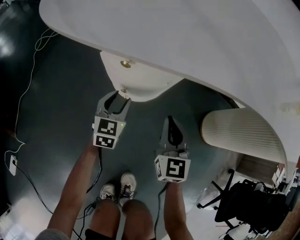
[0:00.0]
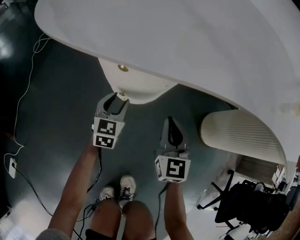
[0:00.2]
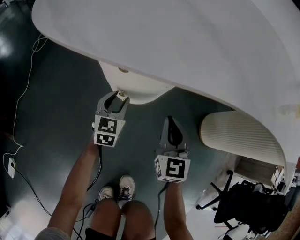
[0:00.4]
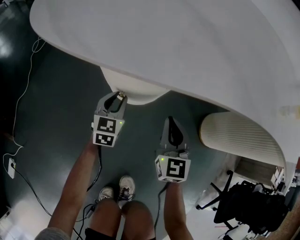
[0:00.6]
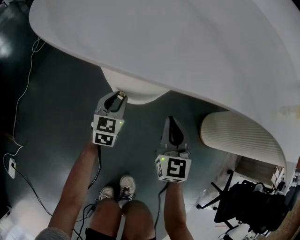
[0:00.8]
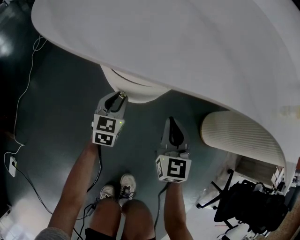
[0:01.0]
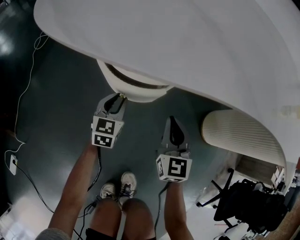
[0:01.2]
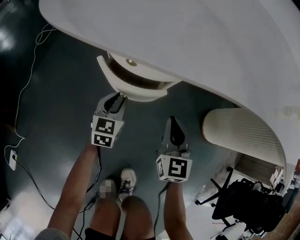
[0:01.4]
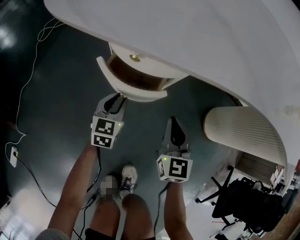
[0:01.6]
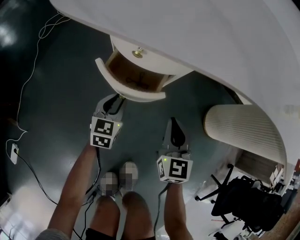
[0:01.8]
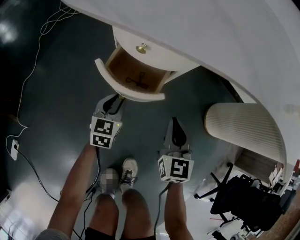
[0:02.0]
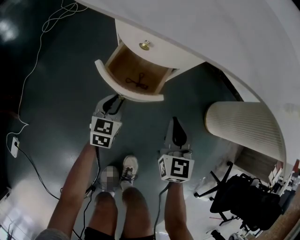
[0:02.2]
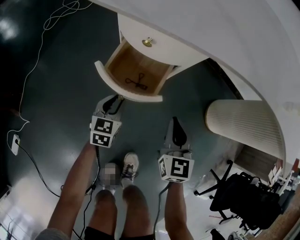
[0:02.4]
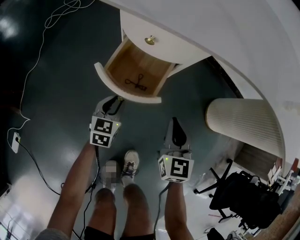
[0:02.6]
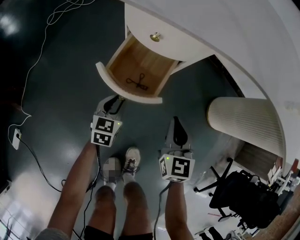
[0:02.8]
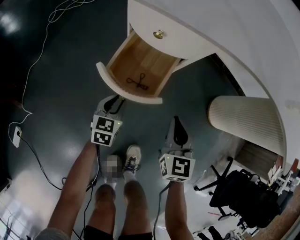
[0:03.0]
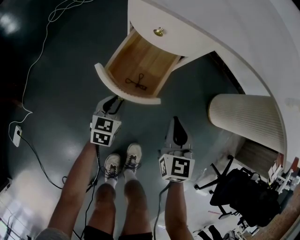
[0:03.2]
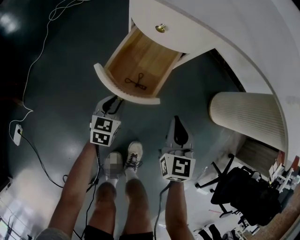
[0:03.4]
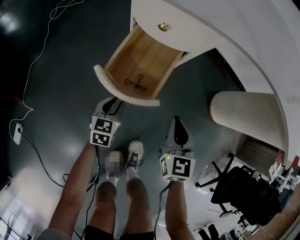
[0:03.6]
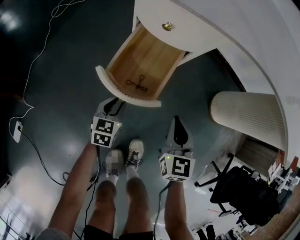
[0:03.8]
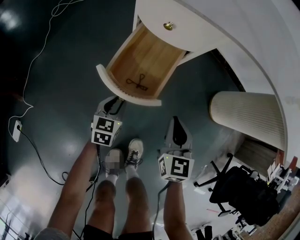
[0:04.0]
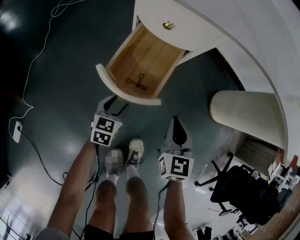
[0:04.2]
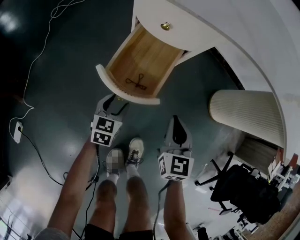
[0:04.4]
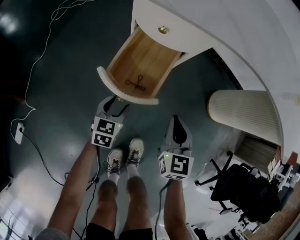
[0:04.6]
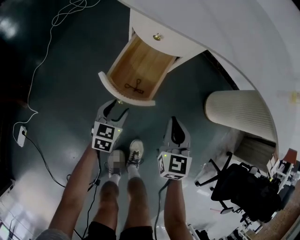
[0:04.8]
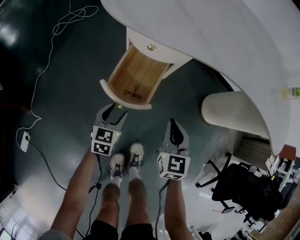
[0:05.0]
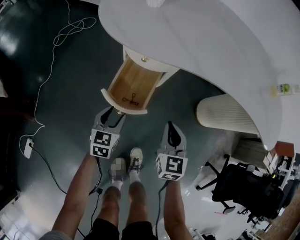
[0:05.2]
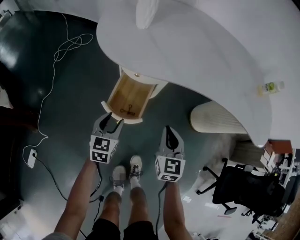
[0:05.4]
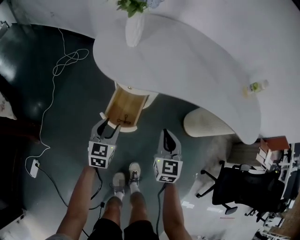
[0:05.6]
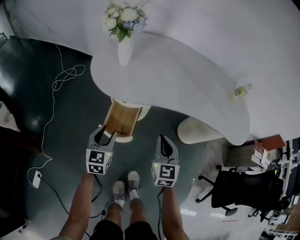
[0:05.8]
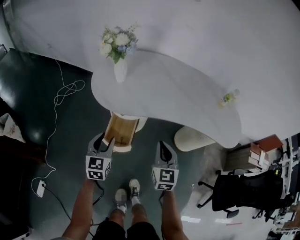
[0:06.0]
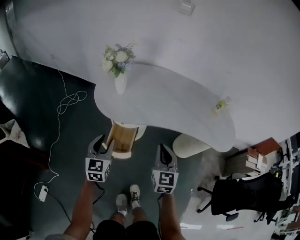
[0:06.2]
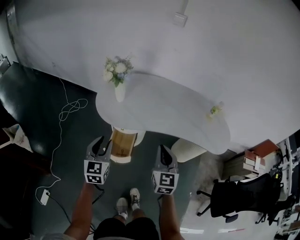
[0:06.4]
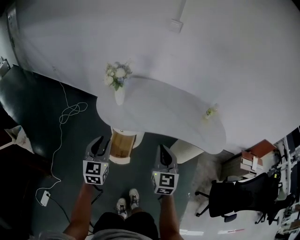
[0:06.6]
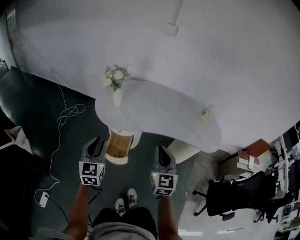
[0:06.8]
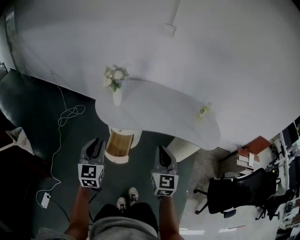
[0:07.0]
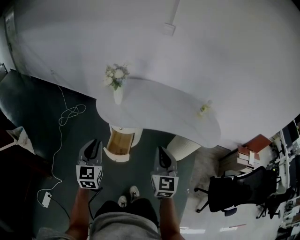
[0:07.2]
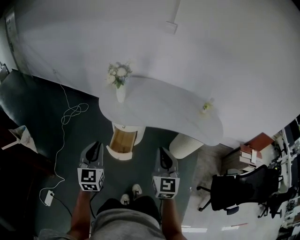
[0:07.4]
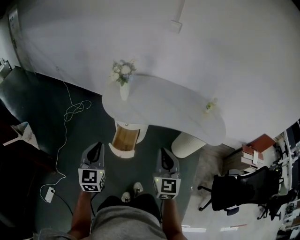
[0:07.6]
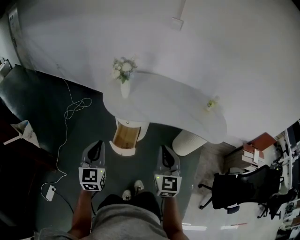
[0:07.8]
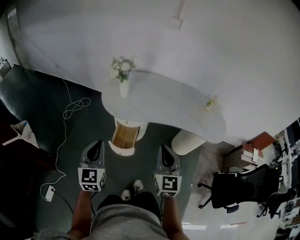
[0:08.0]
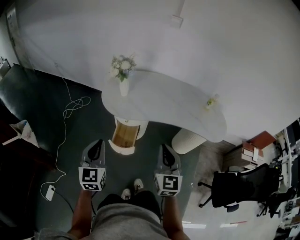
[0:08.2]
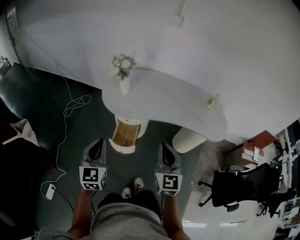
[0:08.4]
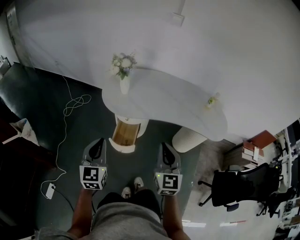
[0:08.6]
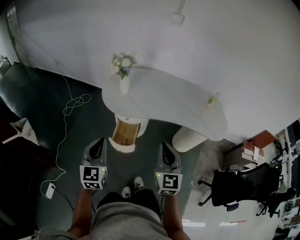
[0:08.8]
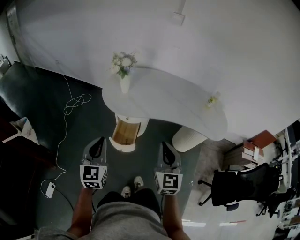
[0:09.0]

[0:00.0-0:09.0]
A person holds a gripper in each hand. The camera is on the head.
0:00.0 to 0:01.6: The grippers move only a little.
0:01.6 to 0:03.0: The grippers both shift backward by roughly 10 cm.
0:03.0 to 0:04.4: The left gripper opens up.
0:04.4 to 0:06.0: The two grippers go approximately 40 cm upward. The left gripper rotates roughly 20 degrees.
0:06.0 to 0:07.6: The two grippers go some 25 cm upward and backward. The left gripper closes up.
0:07.6 to 0:09.0: Both grippers stay about where they are.

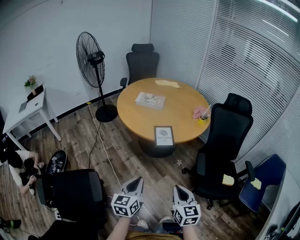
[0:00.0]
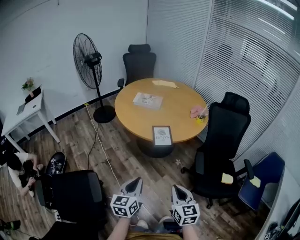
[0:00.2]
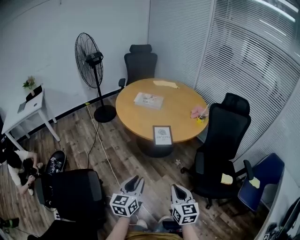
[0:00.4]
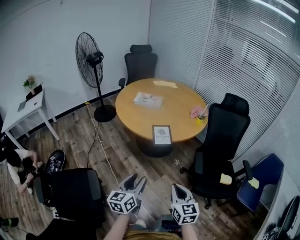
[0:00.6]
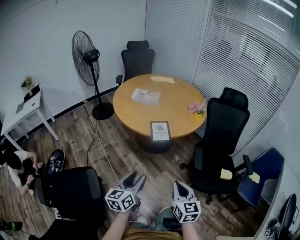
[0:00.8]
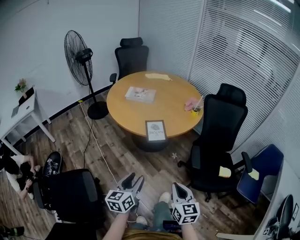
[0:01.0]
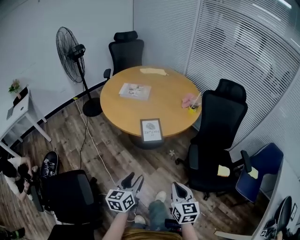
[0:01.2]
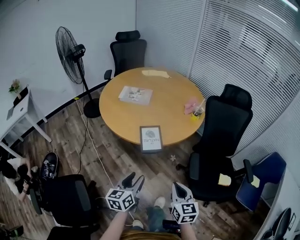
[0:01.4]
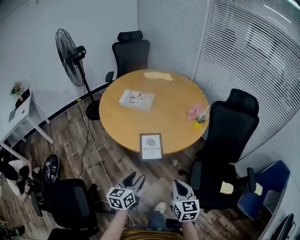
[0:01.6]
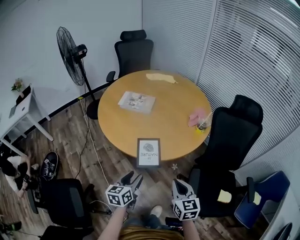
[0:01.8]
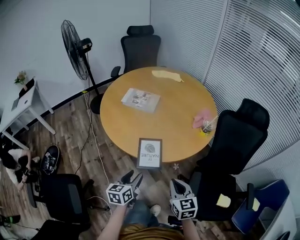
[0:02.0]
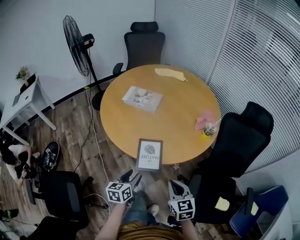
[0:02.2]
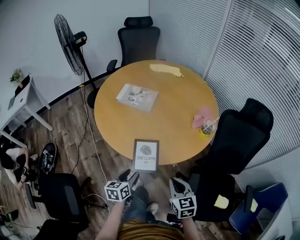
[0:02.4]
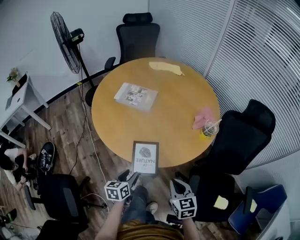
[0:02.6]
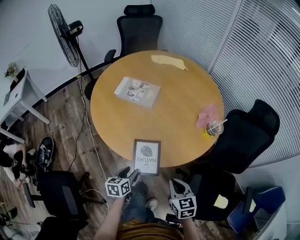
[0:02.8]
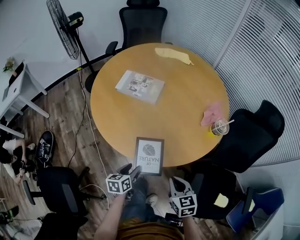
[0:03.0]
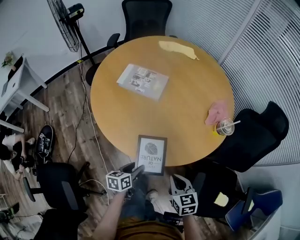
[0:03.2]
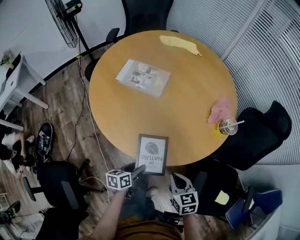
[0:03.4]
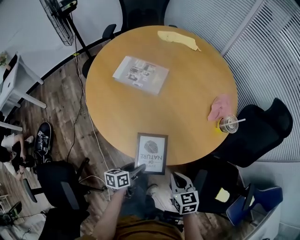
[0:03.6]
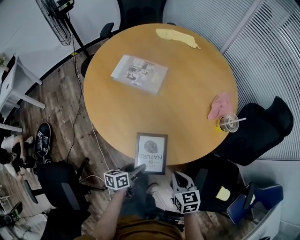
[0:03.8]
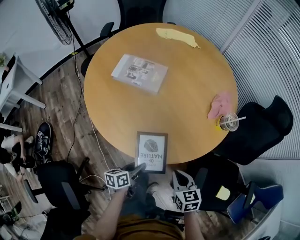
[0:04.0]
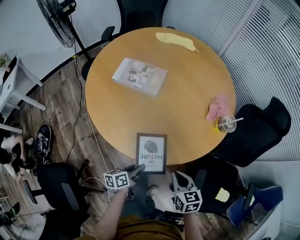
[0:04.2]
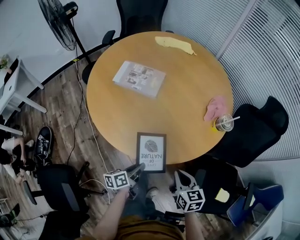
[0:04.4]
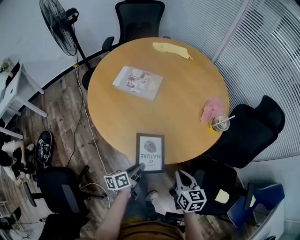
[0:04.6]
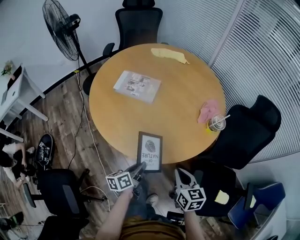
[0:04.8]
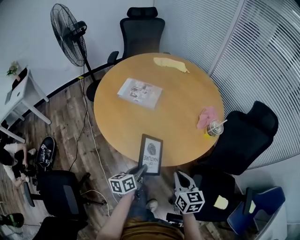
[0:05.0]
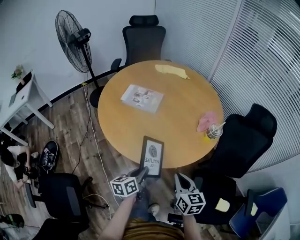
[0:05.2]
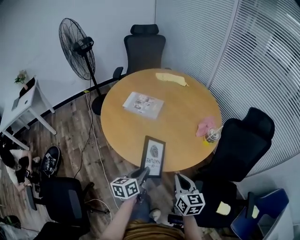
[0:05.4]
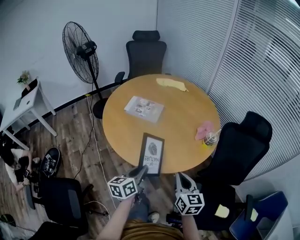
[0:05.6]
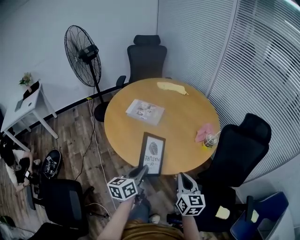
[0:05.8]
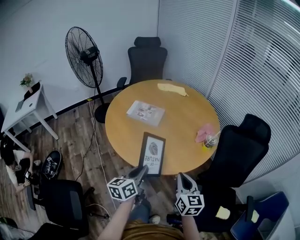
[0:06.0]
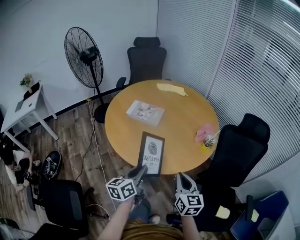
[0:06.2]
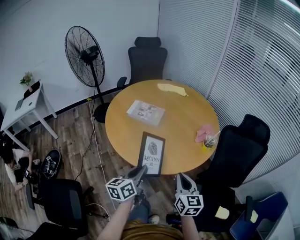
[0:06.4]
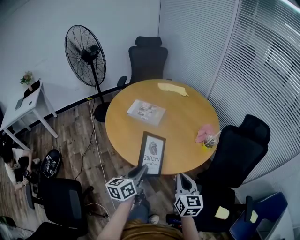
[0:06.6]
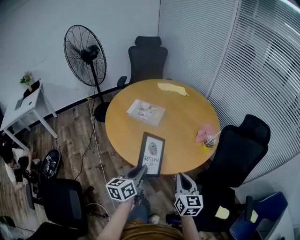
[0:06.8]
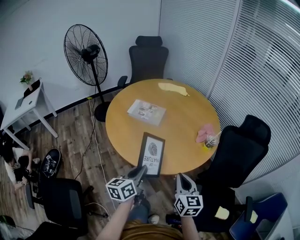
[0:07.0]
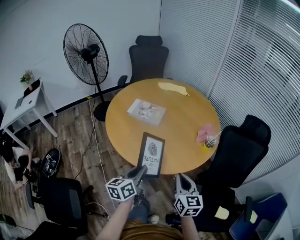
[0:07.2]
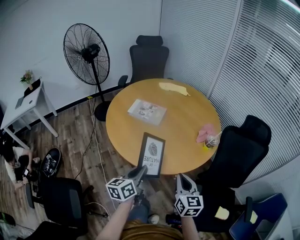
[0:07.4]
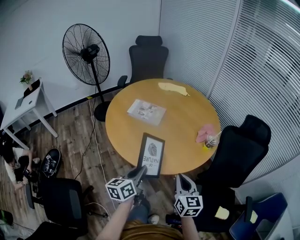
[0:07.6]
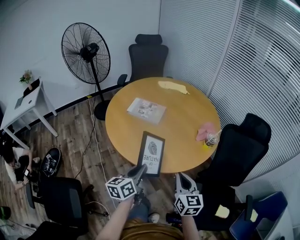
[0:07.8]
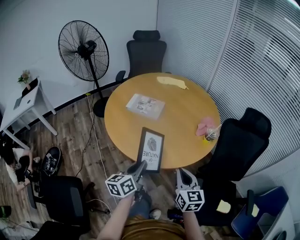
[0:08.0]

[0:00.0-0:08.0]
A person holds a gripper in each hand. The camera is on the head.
0:00.0 to 0:01.6: Both grippers move forward, about 20 cm. The left gripper opens up.
0:01.6 to 0:03.2: The right gripper moves forward and downward, about 20 cm, and swivels some 20 degrees, while the left gripper heads downward and forward, covering roughly 25 cm, and rotates approximately 30 degrees.
0:03.2 to 0:04.8: The left gripper is displaced upward by some 5 cm, and closes. The right gripper changes place by approximately 5 cm.
0:04.8 to 0:06.4: The left gripper is displaced upward by about 20 cm, and turns by about 20 degrees, while the right gripper is displaced upward by about 10 cm.
0:06.4 to 0:08.0: The two grippers keep their place.

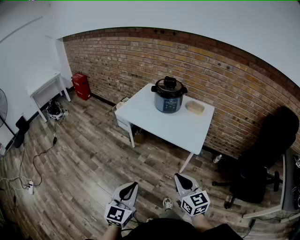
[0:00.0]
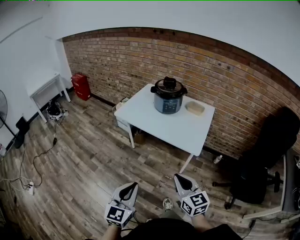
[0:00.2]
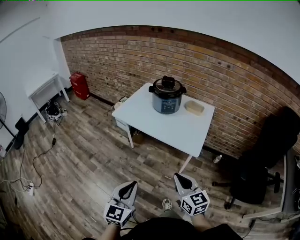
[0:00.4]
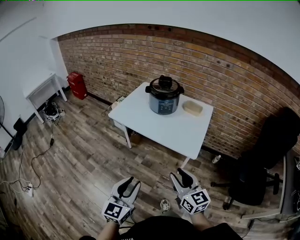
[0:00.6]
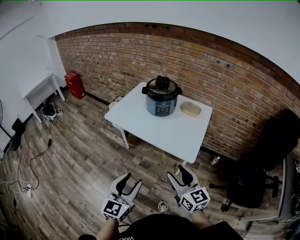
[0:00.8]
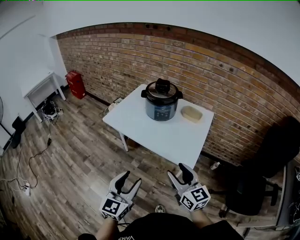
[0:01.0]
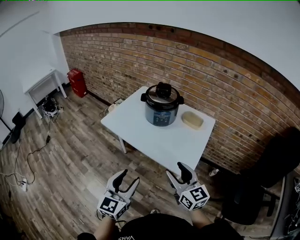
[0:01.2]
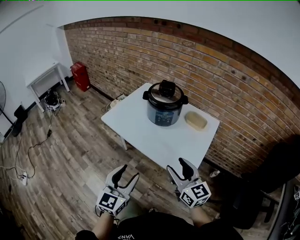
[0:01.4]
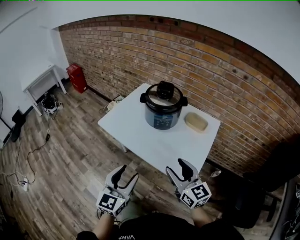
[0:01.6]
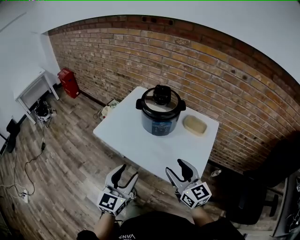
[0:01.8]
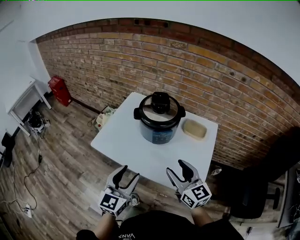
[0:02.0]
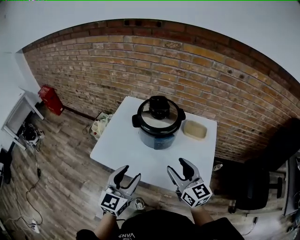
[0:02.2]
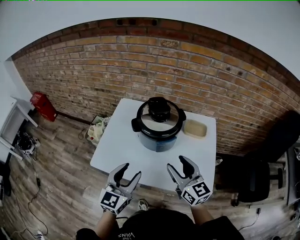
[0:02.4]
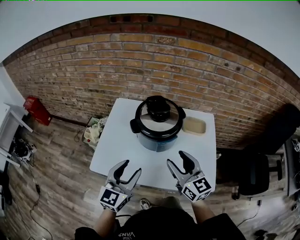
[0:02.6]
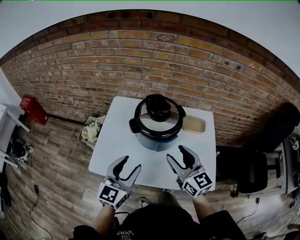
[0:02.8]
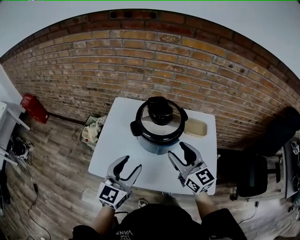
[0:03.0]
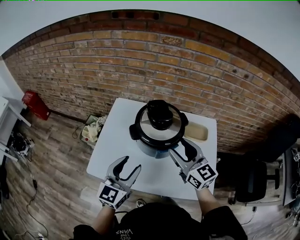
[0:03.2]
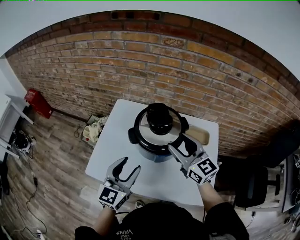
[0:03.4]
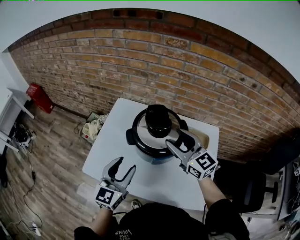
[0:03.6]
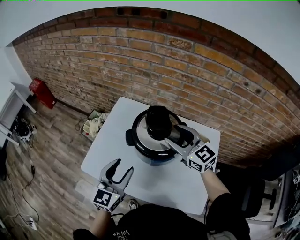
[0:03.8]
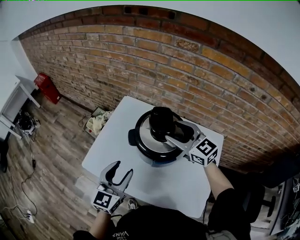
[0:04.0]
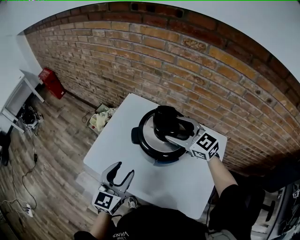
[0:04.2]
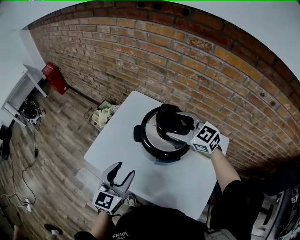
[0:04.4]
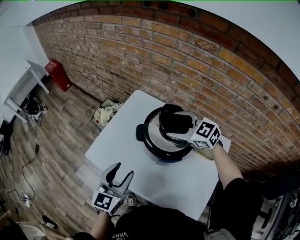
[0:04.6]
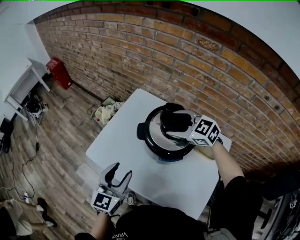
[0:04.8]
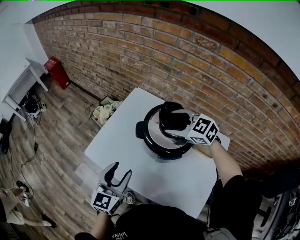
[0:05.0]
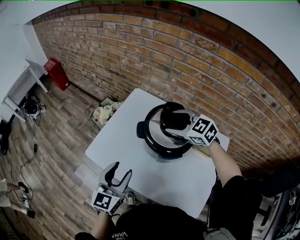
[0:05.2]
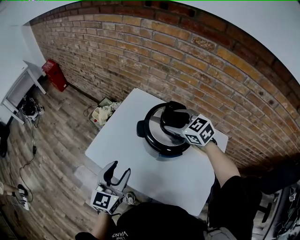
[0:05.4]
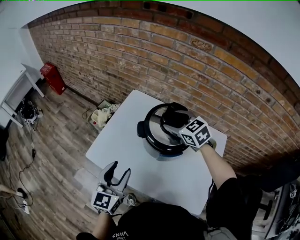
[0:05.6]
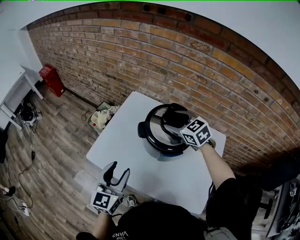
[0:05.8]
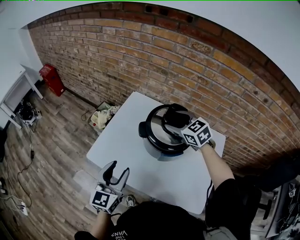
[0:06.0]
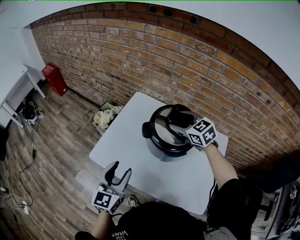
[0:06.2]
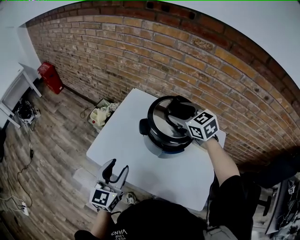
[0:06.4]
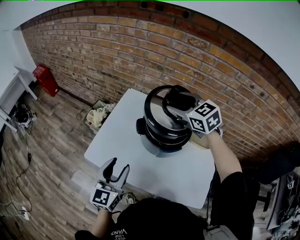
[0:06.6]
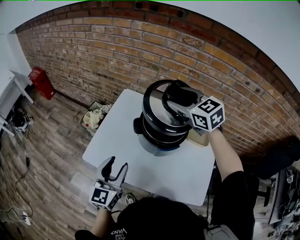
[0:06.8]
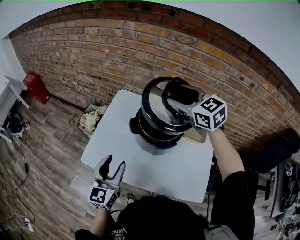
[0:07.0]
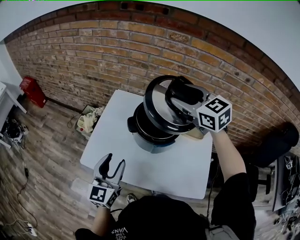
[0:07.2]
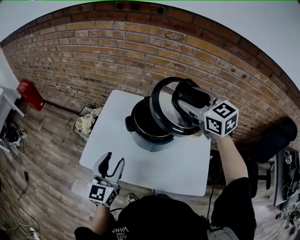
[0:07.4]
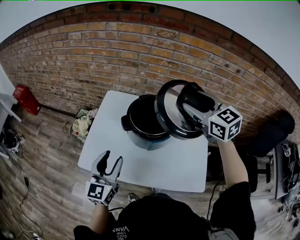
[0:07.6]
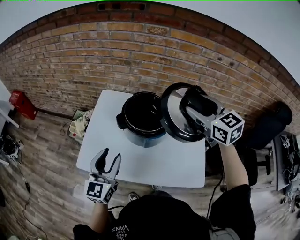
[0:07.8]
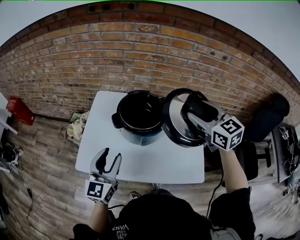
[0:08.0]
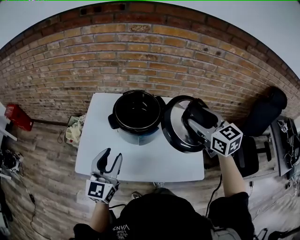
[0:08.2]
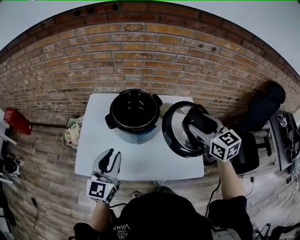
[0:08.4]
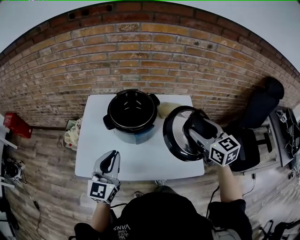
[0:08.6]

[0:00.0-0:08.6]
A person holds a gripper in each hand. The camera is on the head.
0:00.0 to 0:01.4: Both grippers travel together forward and to the right, roughly 25 cm. The right gripper opens up. The left gripper opens up.
0:01.4 to 0:02.8: The left gripper changes place by some 35 cm, and changes its angle by some 30 degrees; the right gripper changes place by about 25 cm, and changes its angle by some 20 degrees.
0:02.8 to 0:04.4: The right gripper shifts by roughly 20 cm, and turns by some 50 degrees. The left gripper swivels approximately 20 degrees.
0:04.4 to 0:05.8: The left gripper travels to the left by roughly 5 cm.
0:05.8 to 0:07.2: The right gripper is displaced upward by about 15 cm.
0:07.2 to 0:08.6: The right gripper goes roughly 30 cm backward, to the right and downward, and rotates some 30 degrees. The left gripper moves to the right, roughly 5 cm, and closes.
